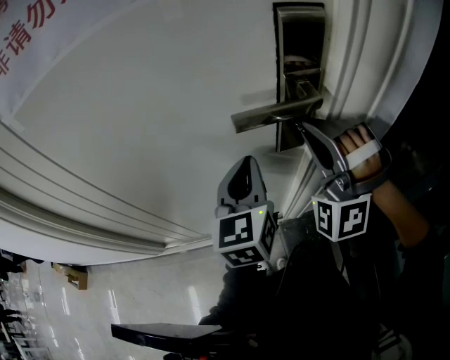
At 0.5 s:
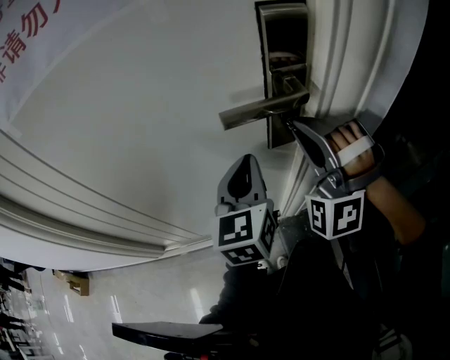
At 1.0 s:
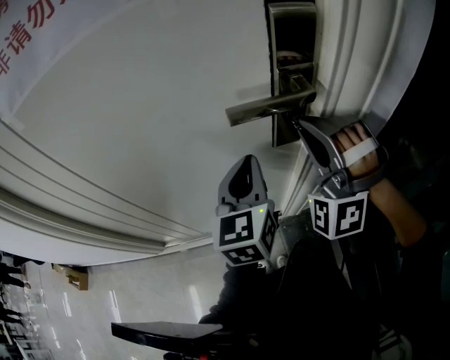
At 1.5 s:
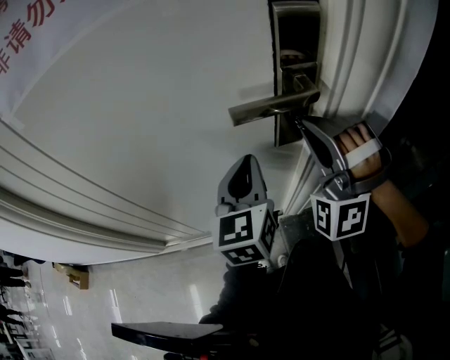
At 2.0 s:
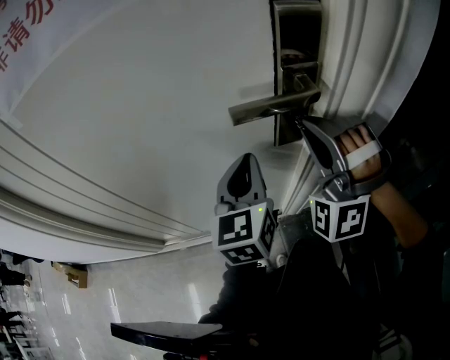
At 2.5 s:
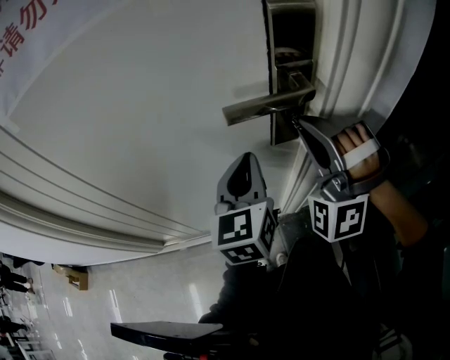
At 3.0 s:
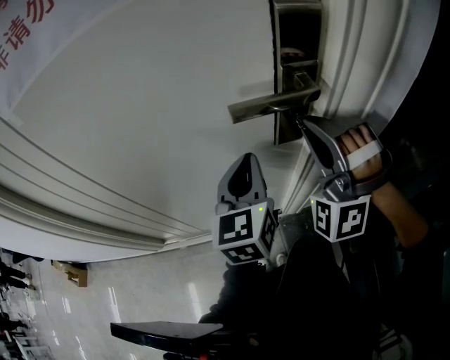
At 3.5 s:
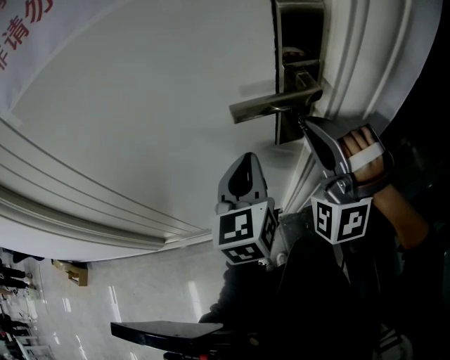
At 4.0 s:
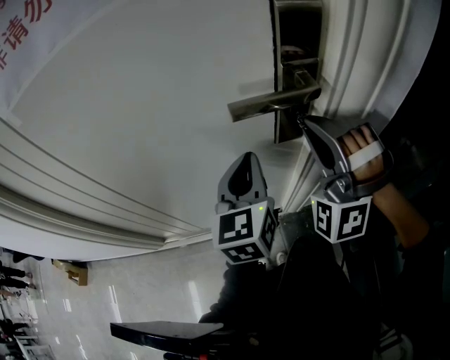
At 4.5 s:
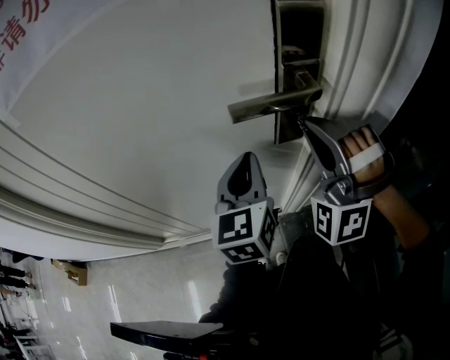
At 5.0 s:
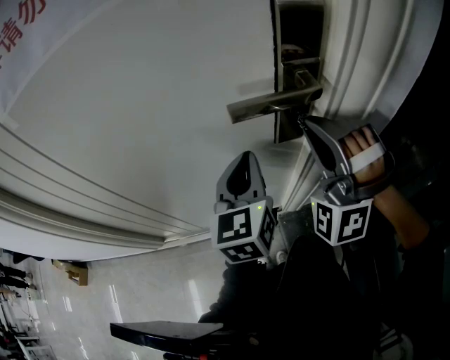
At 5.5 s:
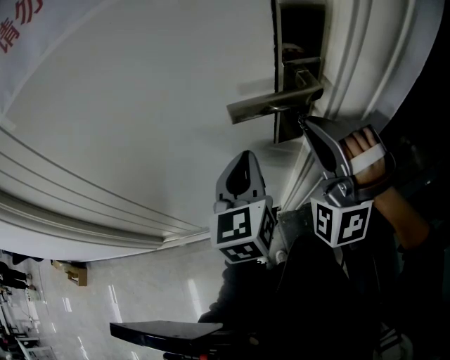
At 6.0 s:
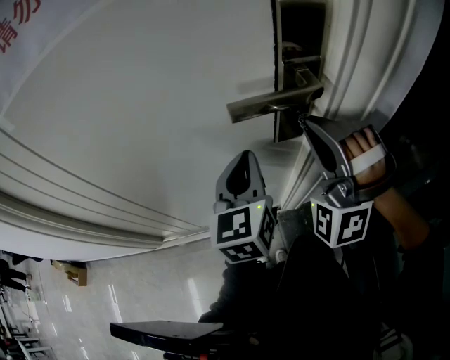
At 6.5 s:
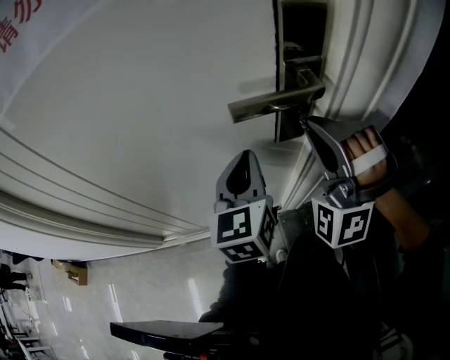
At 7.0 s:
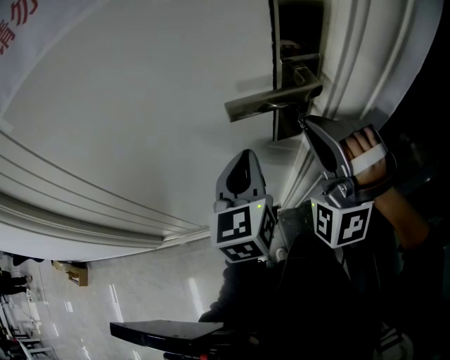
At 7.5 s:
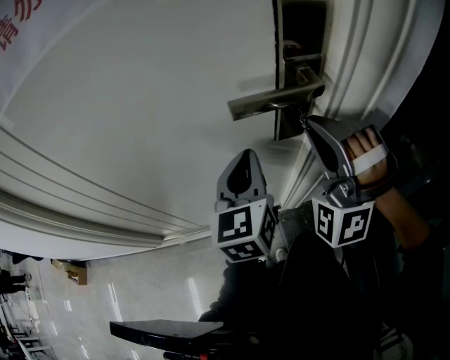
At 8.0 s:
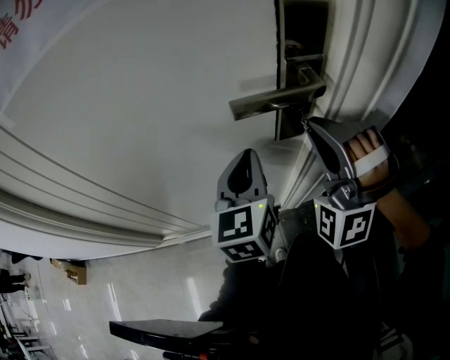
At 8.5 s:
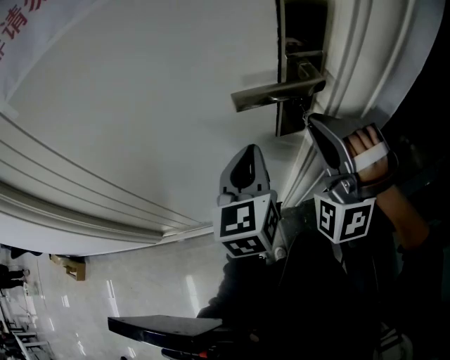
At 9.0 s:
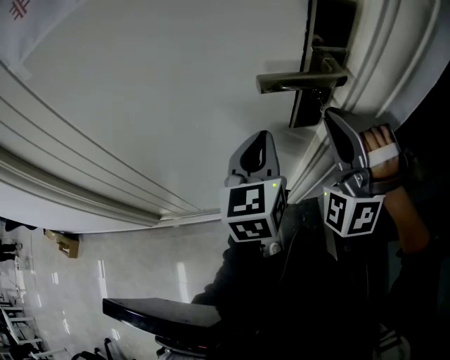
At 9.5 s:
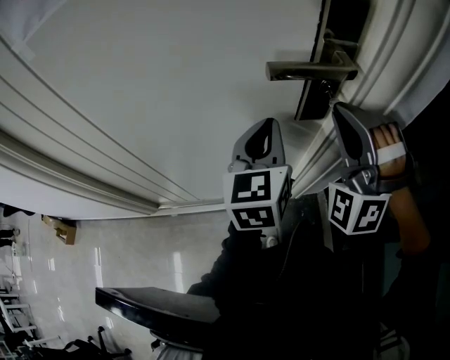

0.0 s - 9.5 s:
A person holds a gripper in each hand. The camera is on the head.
0.0 s - 2.0 s: The grippers move only a little.
2.0 s - 7.5 s: Both grippers stay about where they are.
7.5 s - 9.5 s: The two grippers keep their place.

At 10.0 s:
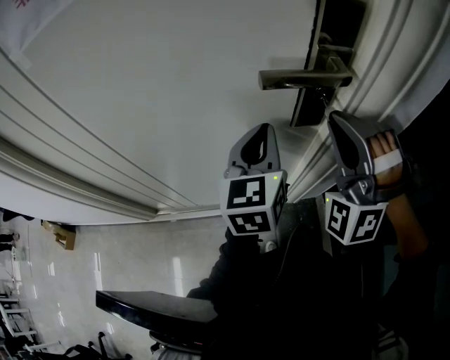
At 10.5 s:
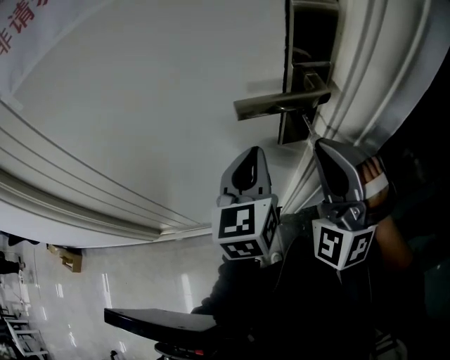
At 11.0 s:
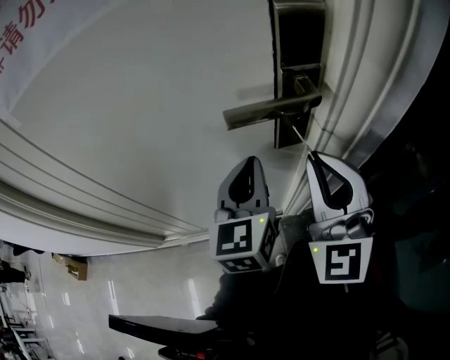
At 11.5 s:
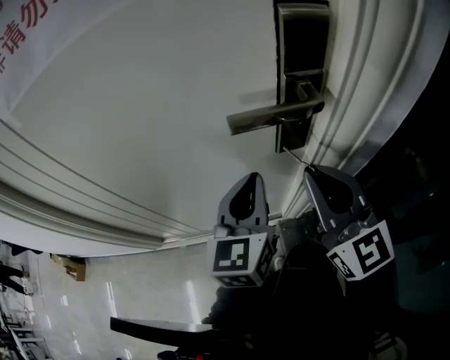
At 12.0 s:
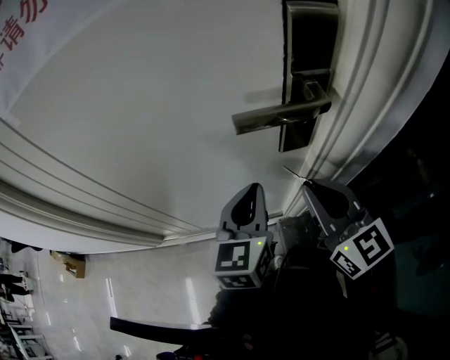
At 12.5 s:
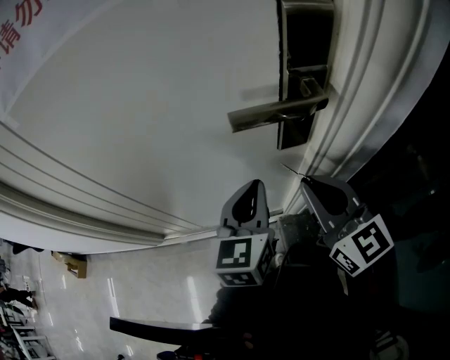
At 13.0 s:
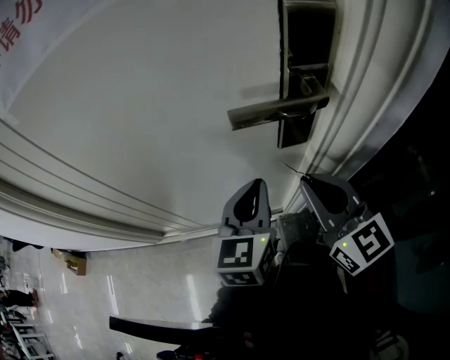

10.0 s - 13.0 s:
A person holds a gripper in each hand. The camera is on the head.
10.0 s - 11.5 s: The right gripper rotates around the line of its fingers by approximately 80 degrees, clockwise from behind.
11.5 s - 13.0 s: The grippers make only small movements.

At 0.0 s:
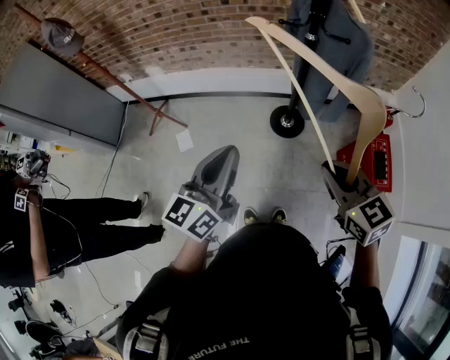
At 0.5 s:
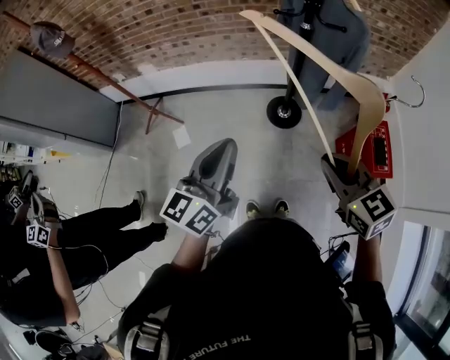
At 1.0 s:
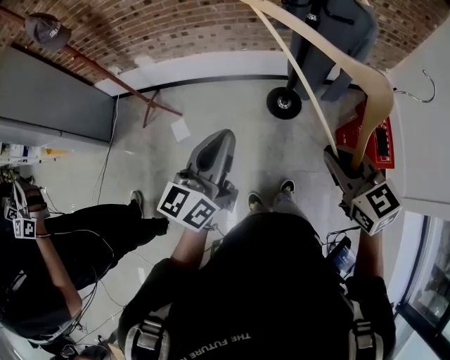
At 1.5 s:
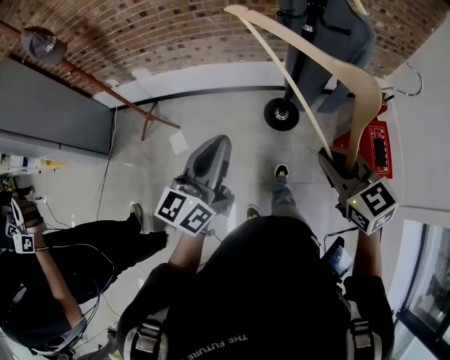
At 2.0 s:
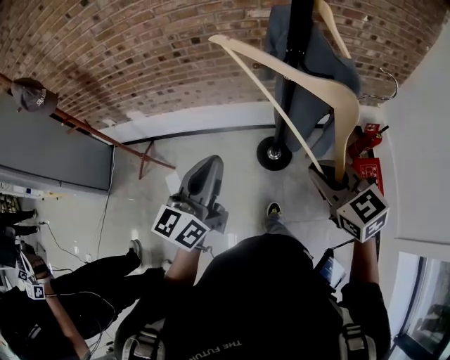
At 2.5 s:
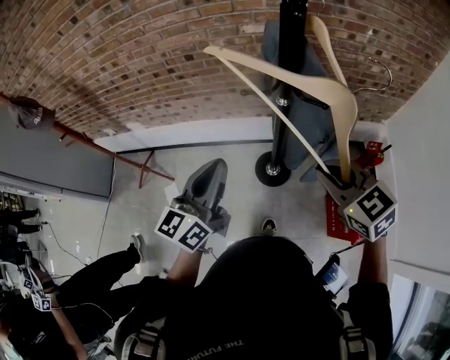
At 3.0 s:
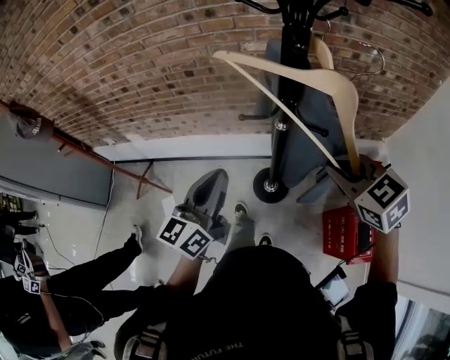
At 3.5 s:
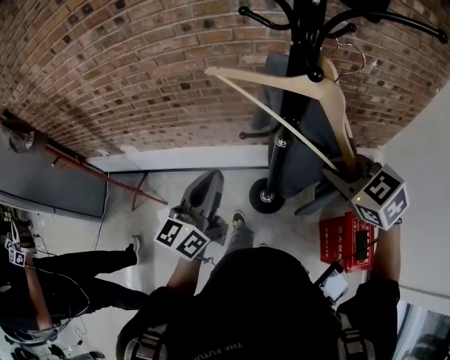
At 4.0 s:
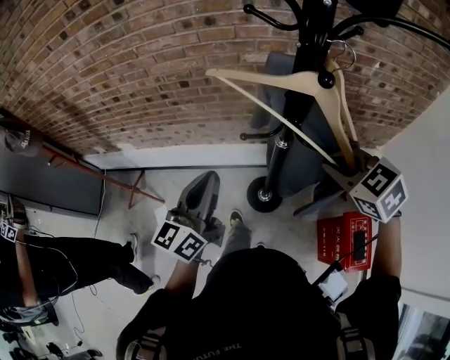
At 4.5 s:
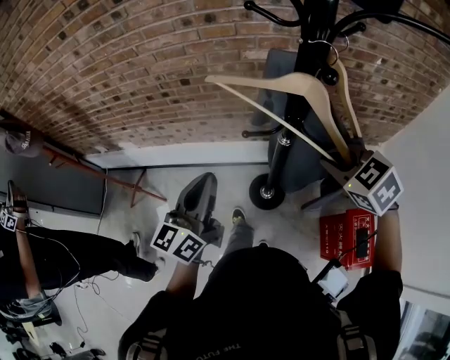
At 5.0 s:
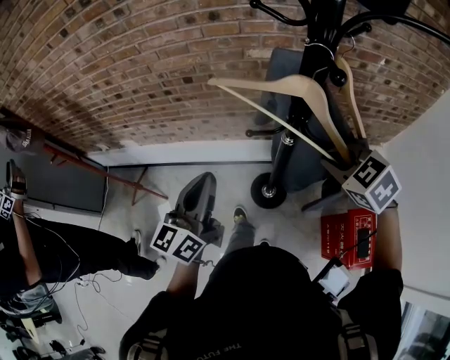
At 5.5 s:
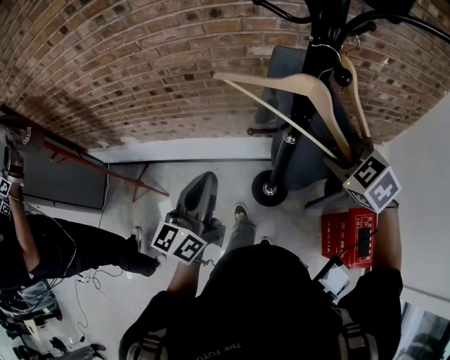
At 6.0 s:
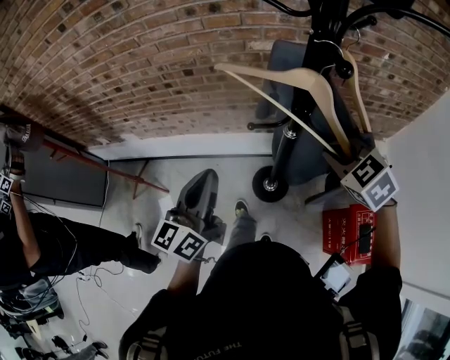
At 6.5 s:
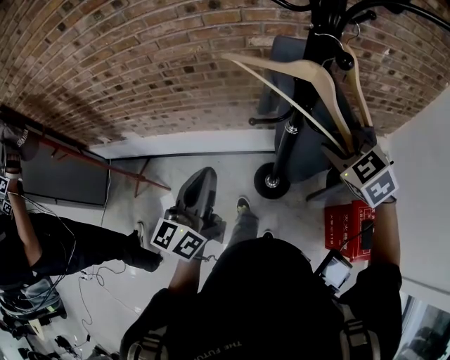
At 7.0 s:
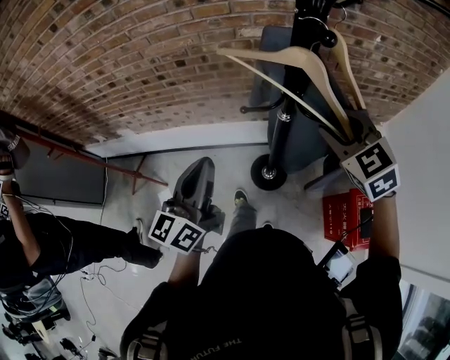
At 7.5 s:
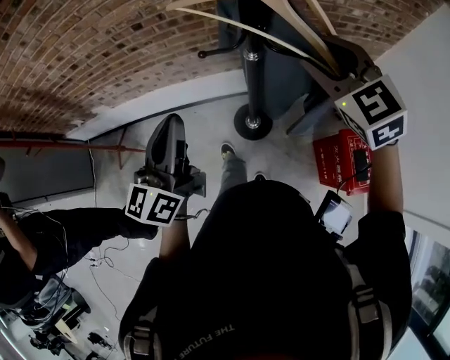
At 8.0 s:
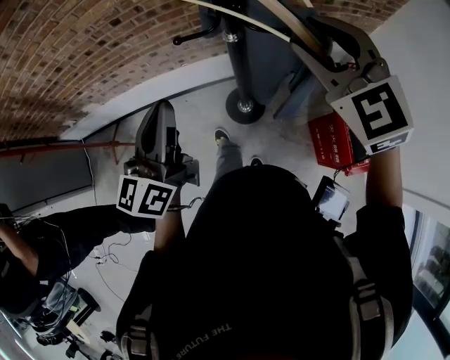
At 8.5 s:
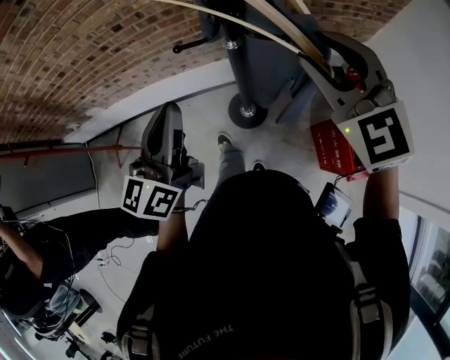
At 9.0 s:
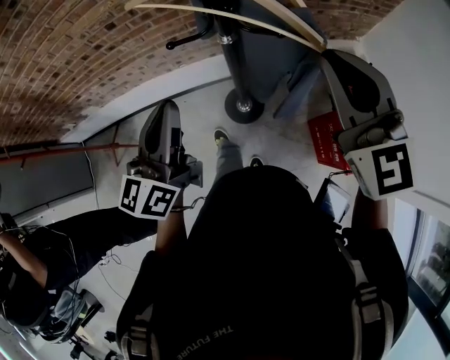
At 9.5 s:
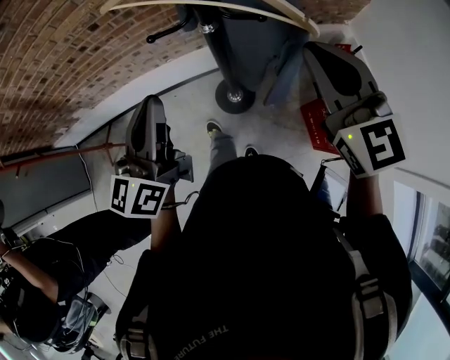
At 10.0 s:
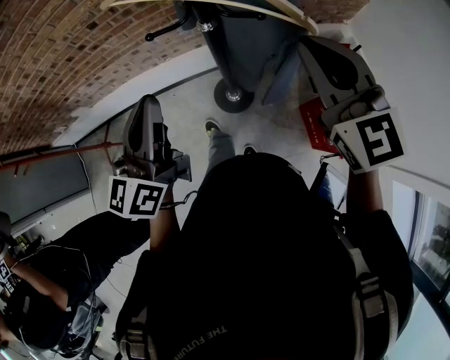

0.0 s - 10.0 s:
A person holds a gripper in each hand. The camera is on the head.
0.0 s - 2.0 s: Both grippers travel together forward, some 20 cm.
2.0 s - 4.0 s: The right gripper heads forward and to the right, covering about 25 cm, and swivels approximately 20 degrees; the left gripper is displaced forward by roughly 20 cm.
4.0 s - 6.0 s: The grippers stay close to where they were, moving slightly.
6.0 s - 8.0 s: The right gripper heads upward and backward, covering roughly 10 cm, turns by roughly 30 degrees, and opens its fingers. The left gripper travels to the right by roughly 5 cm.
8.0 s - 10.0 s: The right gripper is displaced backward by approximately 5 cm, turns by roughly 20 degrees, and closes its fingers.

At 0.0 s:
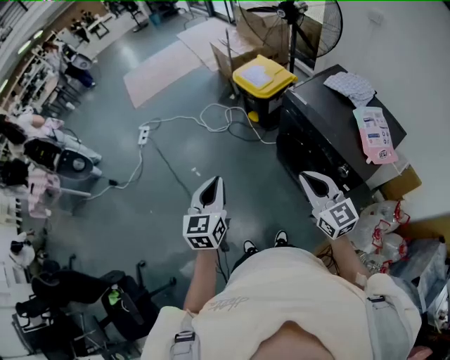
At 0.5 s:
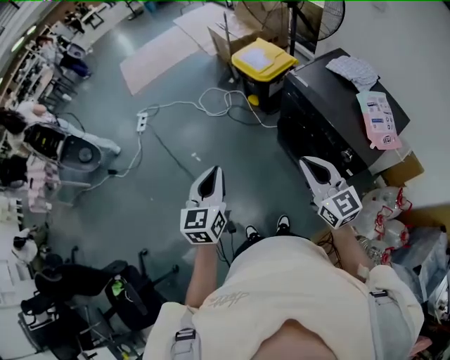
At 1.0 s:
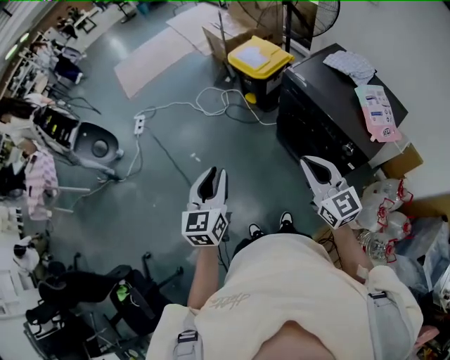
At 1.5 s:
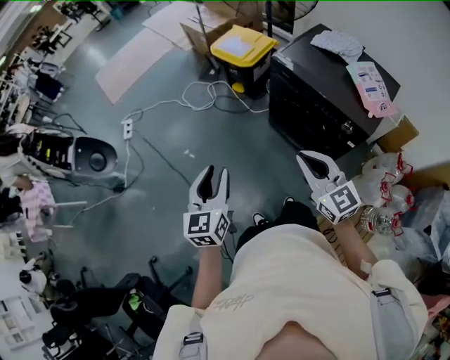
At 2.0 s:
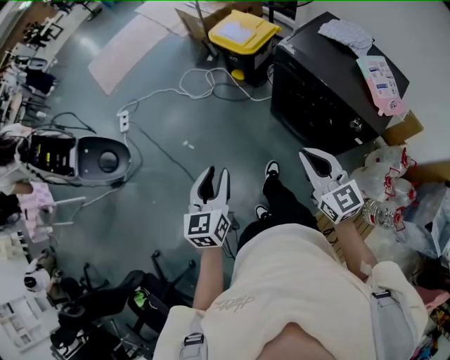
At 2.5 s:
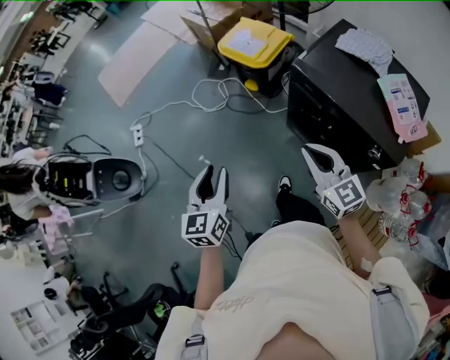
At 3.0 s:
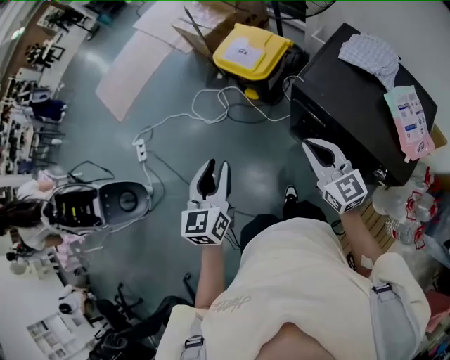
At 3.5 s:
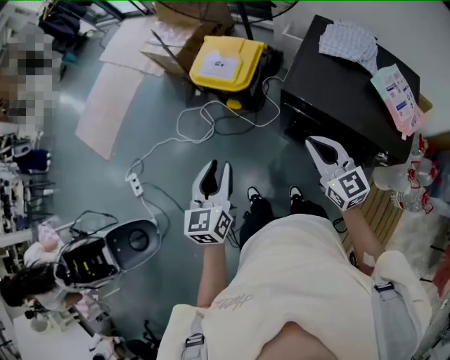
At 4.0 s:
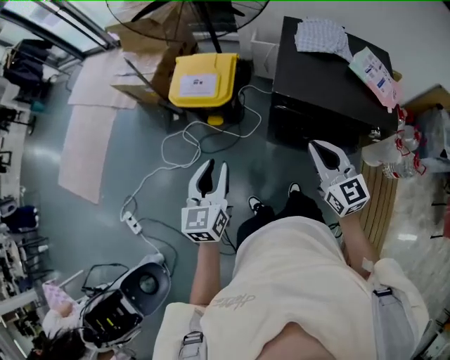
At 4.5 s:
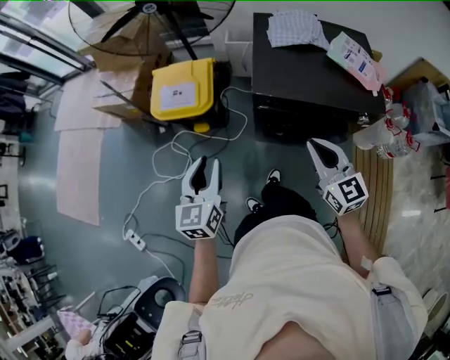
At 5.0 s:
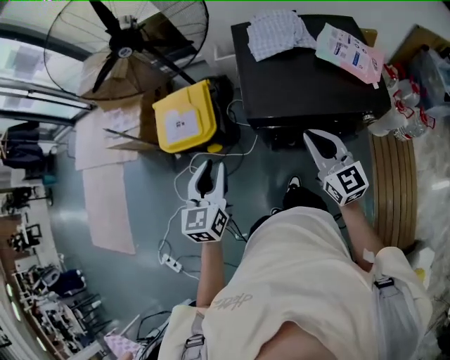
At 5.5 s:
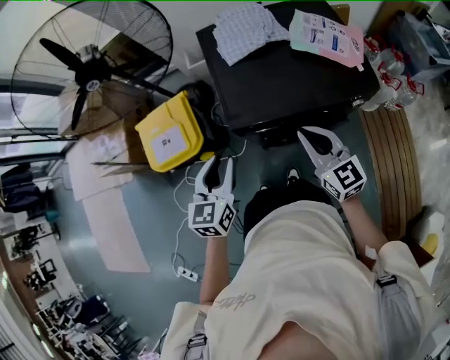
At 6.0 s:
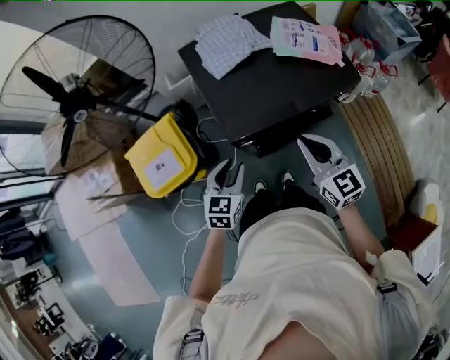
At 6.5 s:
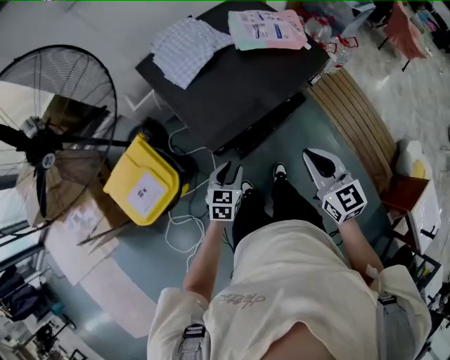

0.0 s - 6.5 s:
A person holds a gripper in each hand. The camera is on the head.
0.0 s - 2.0 s: The right gripper heads to the left, covering some 5 cm, while the left gripper travels downward and to the left by about 10 cm, and opens its fingers.
2.0 s - 4.5 s: The left gripper changes place by about 40 cm, and swivels some 40 degrees; the right gripper ends up about 25 cm from where it was, and turns by about 40 degrees.
4.5 s - 6.5 s: The left gripper moves roughly 30 cm, and changes its angle by roughly 60 degrees. Meanwhile the right gripper moves downward, roughly 5 cm, and swivels approximately 40 degrees.
